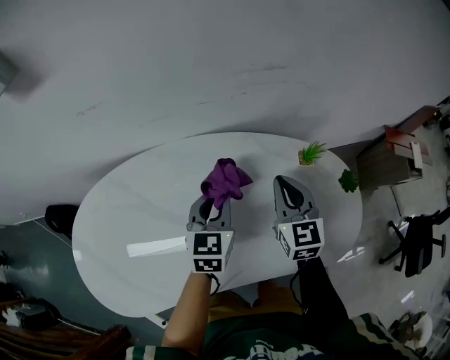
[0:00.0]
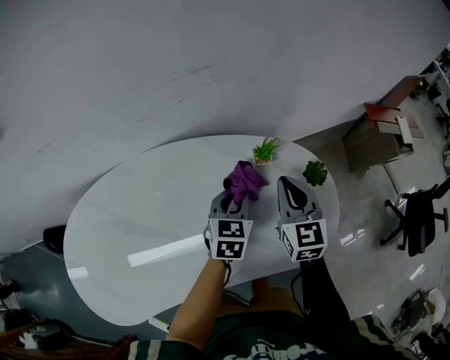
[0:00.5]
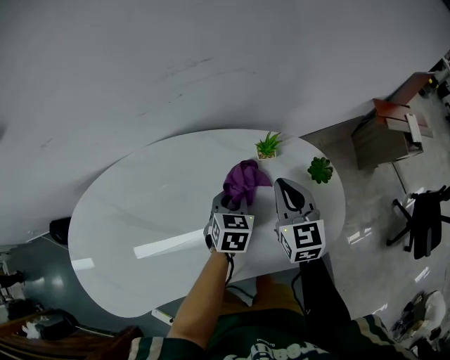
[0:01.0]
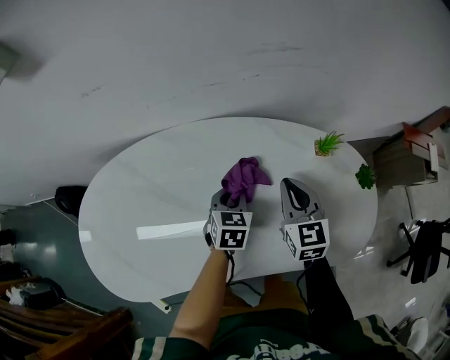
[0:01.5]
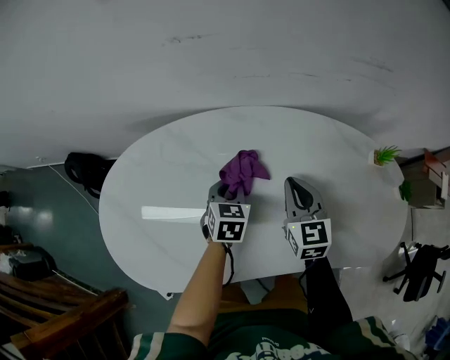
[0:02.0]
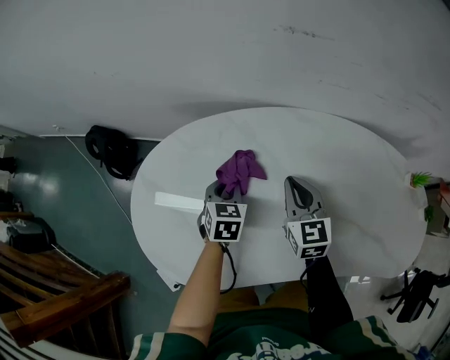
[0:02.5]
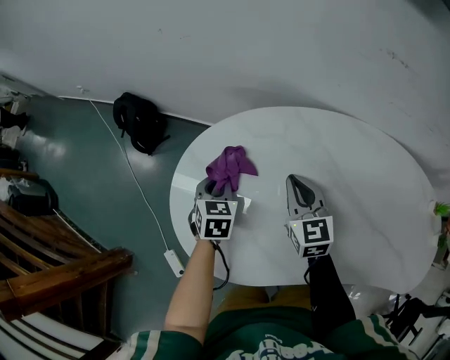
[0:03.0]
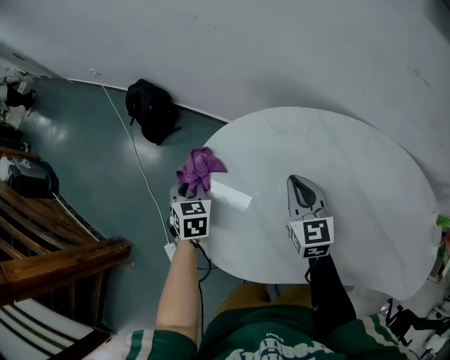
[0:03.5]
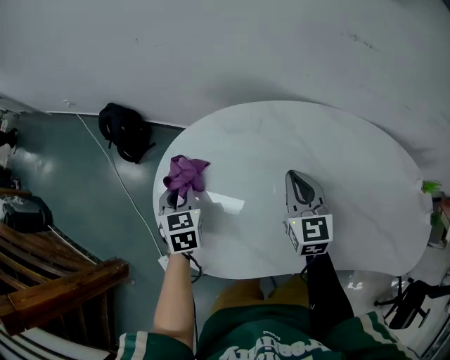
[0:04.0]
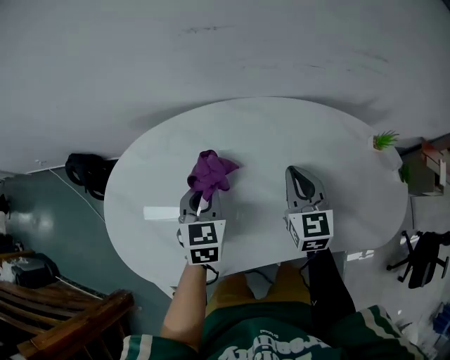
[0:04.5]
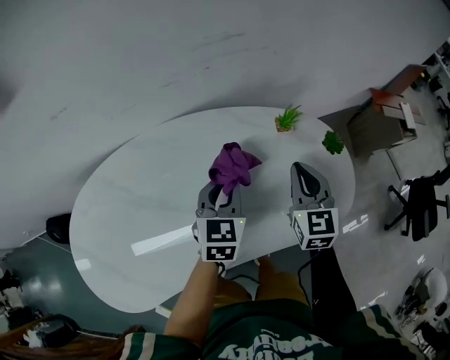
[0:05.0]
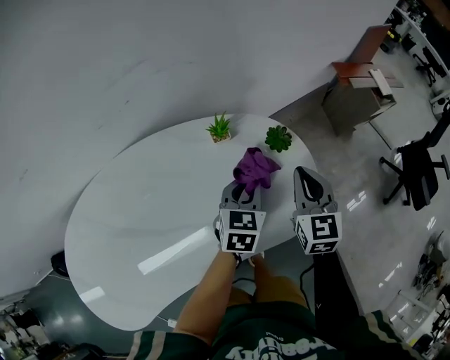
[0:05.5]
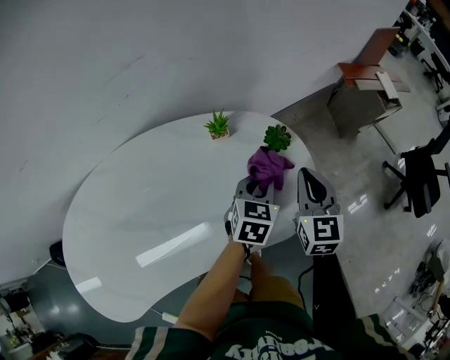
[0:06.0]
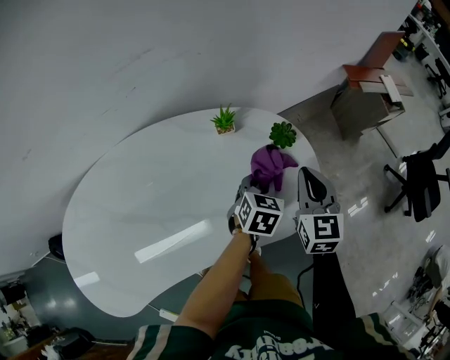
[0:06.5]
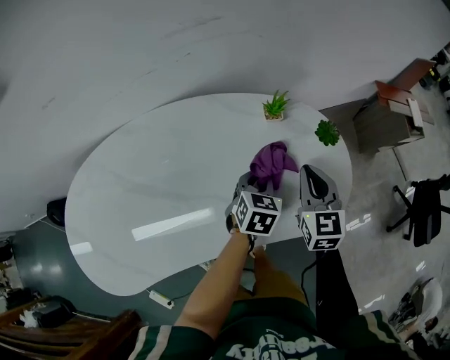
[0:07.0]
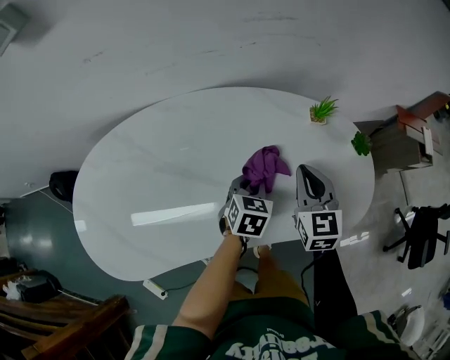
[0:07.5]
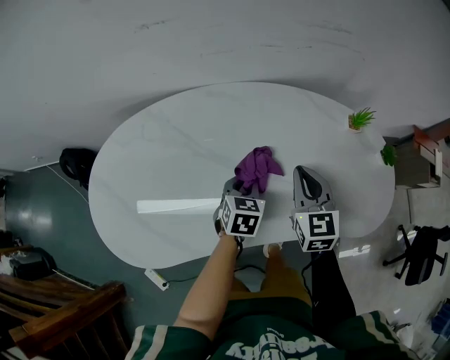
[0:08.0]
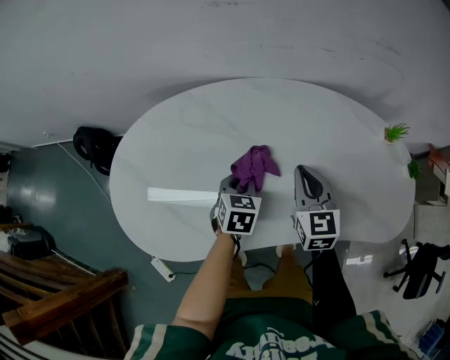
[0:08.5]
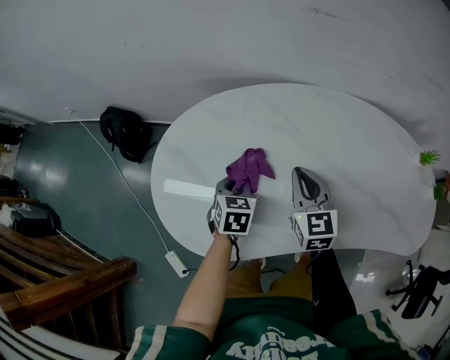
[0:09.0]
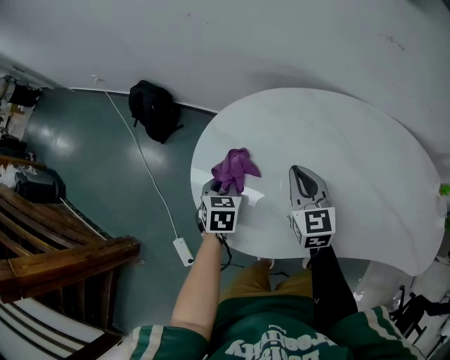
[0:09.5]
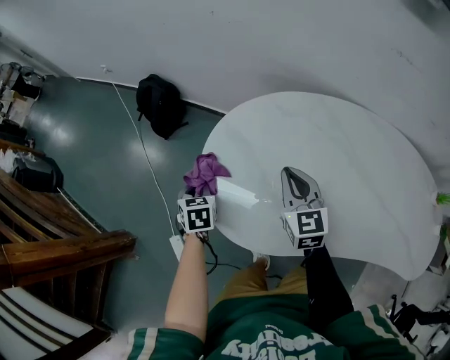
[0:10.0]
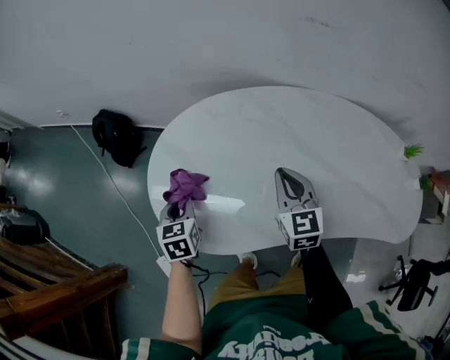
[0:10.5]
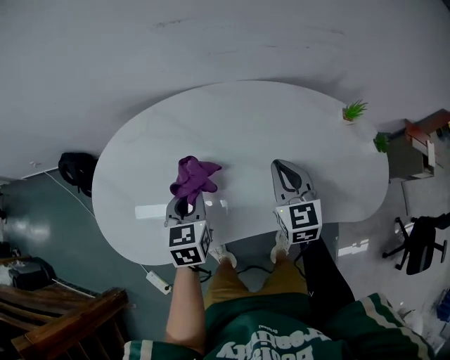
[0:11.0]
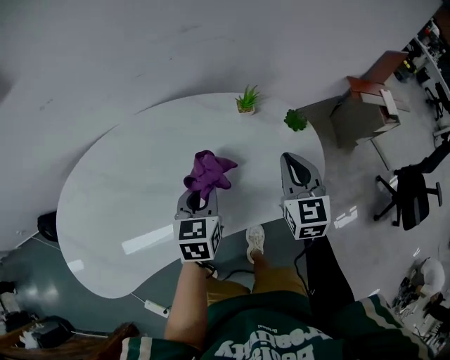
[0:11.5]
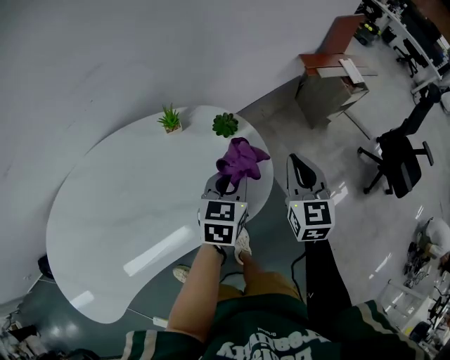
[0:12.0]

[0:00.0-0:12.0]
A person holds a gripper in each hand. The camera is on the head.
0:00.0 to 0:02.0: The left gripper is displaced to the left and downward by approximately 25 cm, and rotates some 20 degrees. The right gripper heads to the left, covering some 20 cm.
0:02.0 to 0:04.0: The left gripper ends up roughly 40 cm from where it was, and turns by roughly 30 degrees. The right gripper moves roughly 30 cm.
0:04.0 to 0:06.0: The pair of grippers is taken about 90 cm. The right gripper rotates approximately 50 degrees; the left gripper changes its angle by approximately 70 degrees.
0:06.0 to 0:08.0: The right gripper ends up some 35 cm from where it was, and changes its angle by some 30 degrees. Meanwhile the left gripper shifts by about 40 cm, and changes its angle by some 30 degrees.
0:08.0 to 0:10.0: Both grippers are carried roughly 60 cm. The right gripper rotates about 30 degrees. Meanwhile the left gripper changes its angle by approximately 50 degrees.
0:10.0 to 0:12.0: The two grippers travel together, some 1 m. The right gripper rotates some 60 degrees. The left gripper swivels roughly 80 degrees.

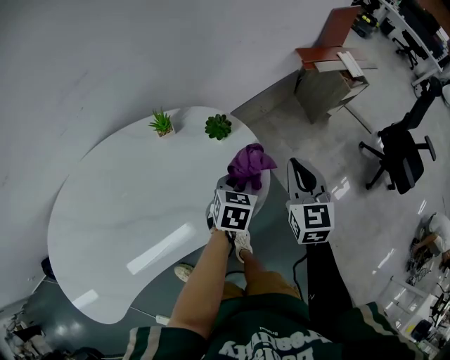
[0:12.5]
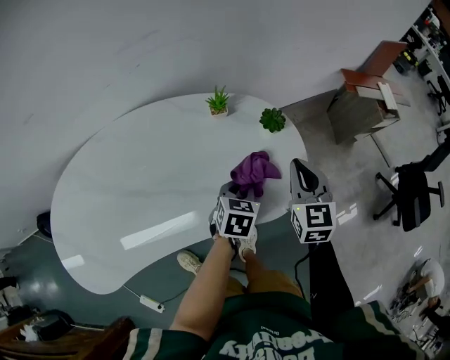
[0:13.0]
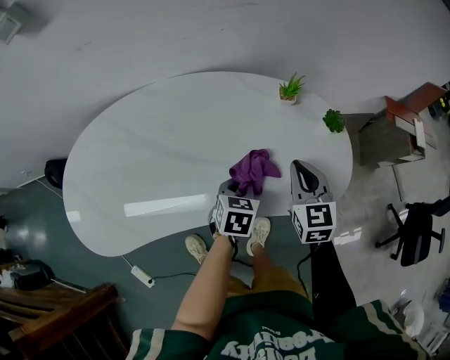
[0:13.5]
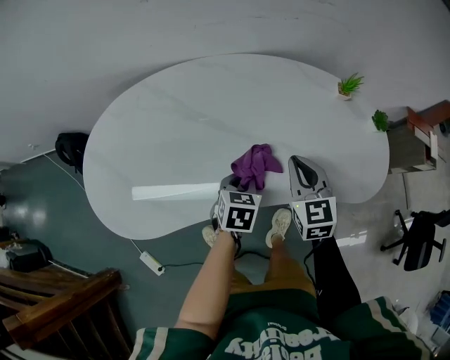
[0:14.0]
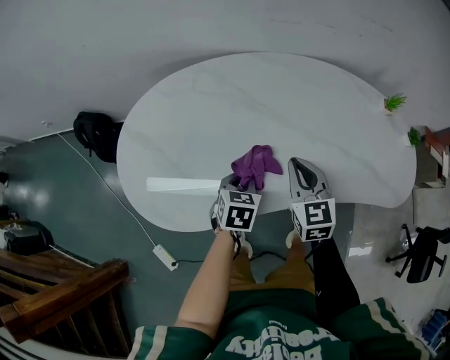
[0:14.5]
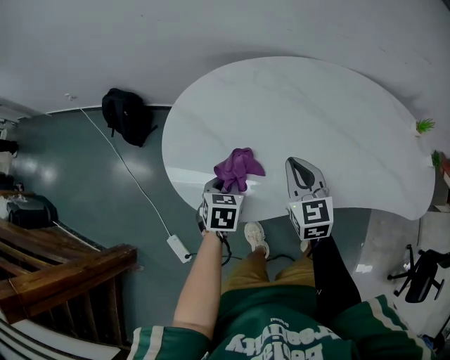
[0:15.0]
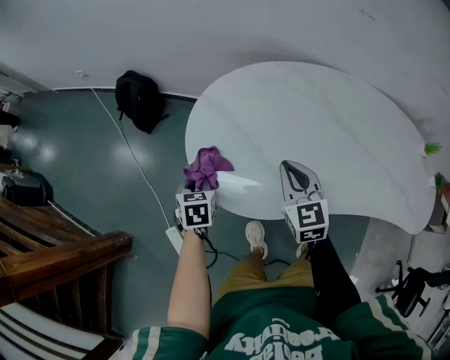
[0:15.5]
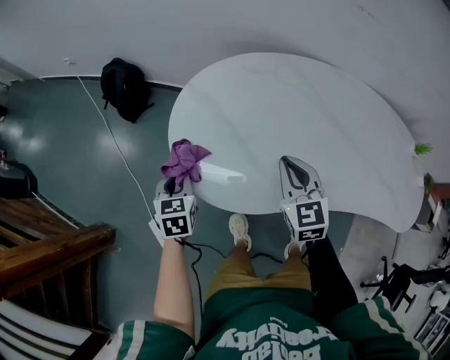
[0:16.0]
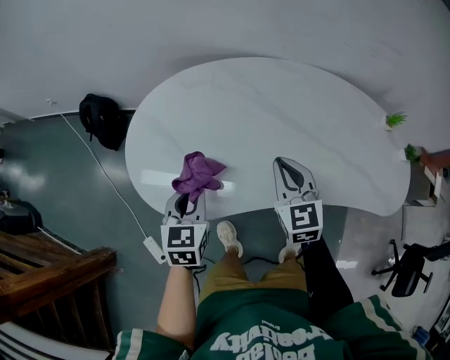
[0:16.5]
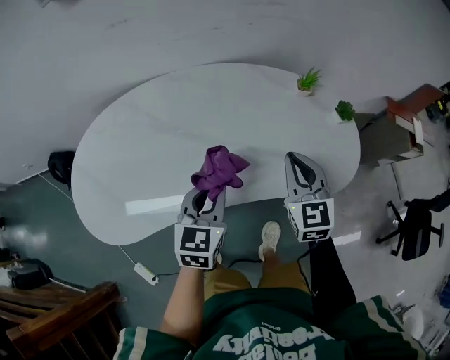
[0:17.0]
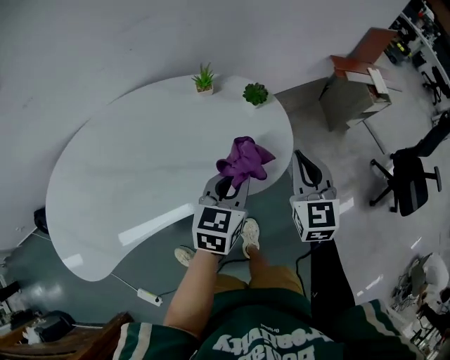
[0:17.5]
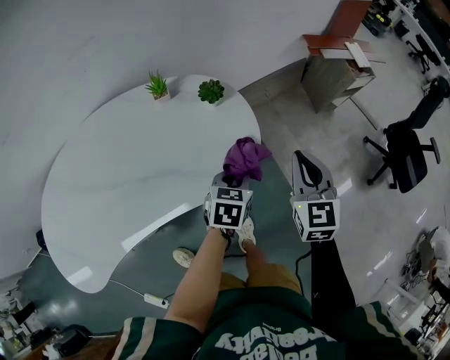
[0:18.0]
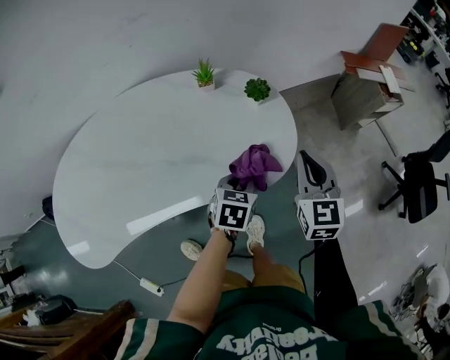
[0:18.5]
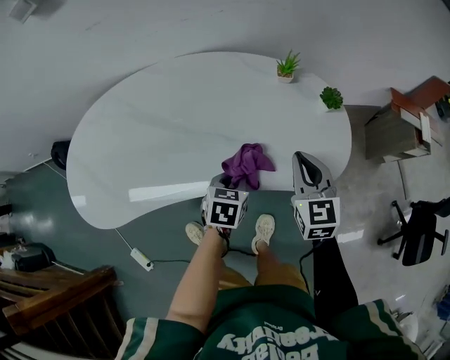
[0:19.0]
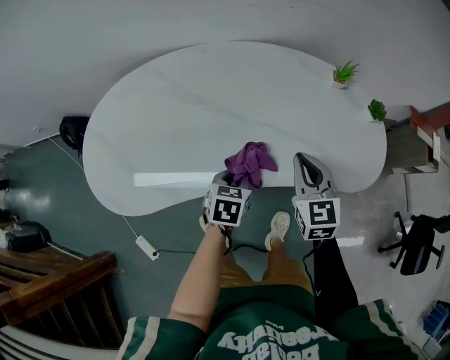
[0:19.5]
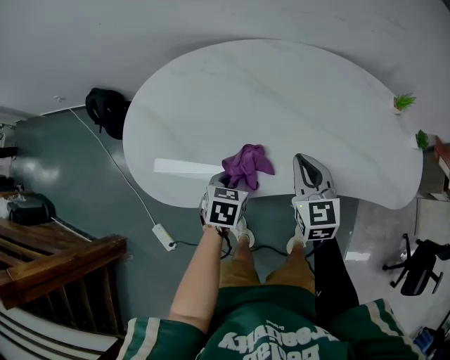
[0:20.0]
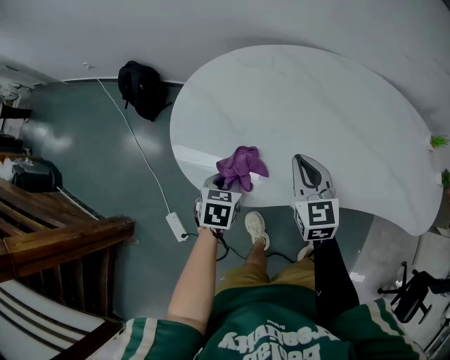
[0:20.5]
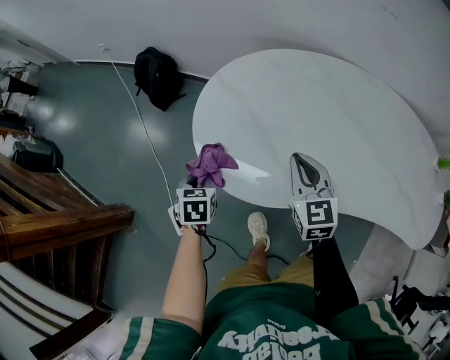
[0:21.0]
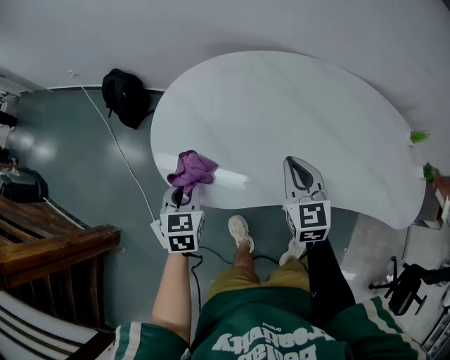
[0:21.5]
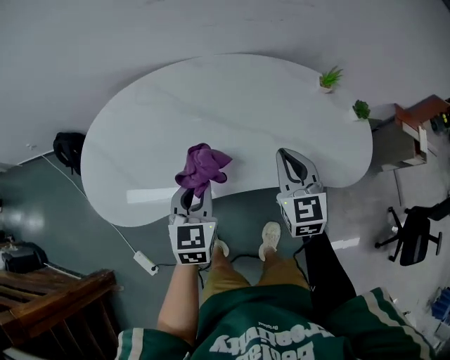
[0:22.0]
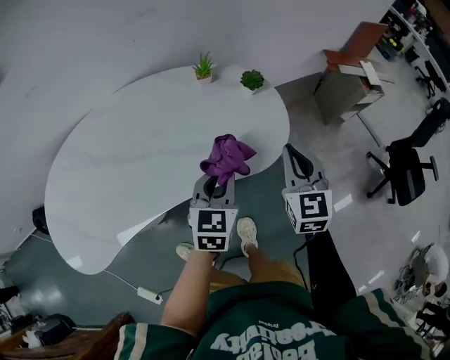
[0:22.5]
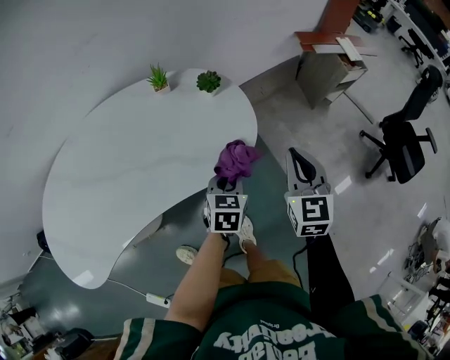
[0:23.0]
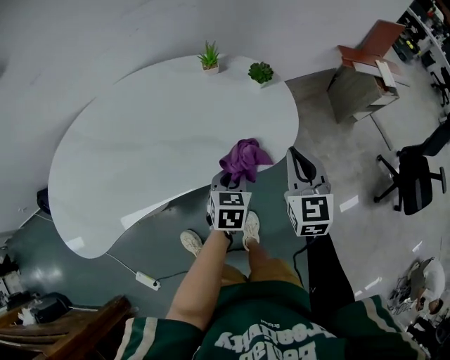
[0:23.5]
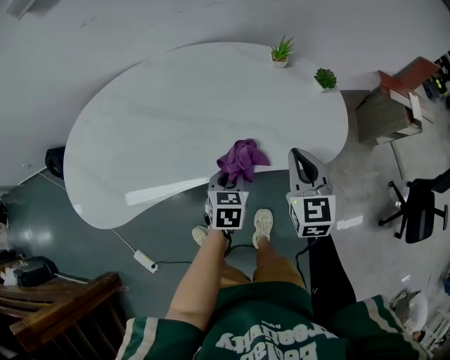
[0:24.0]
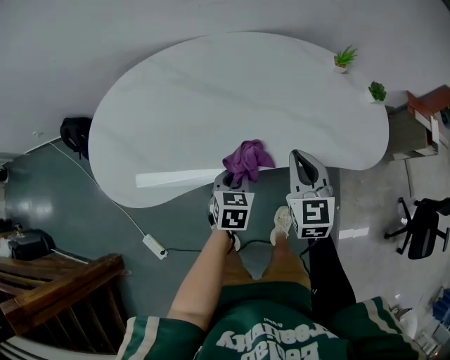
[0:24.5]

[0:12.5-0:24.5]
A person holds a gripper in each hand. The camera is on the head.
0:12.5 to 0:14.5: Both grippers are carried some 70 cm. The left gripper rotates about 40 degrees; the right gripper rotates roughly 40 degrees.
0:14.5 to 0:16.5: The left gripper turns by about 20 degrees.
0:16.5 to 0:18.5: The pair of grippers is taken roughly 70 cm. The left gripper changes its angle by some 50 degrees. Meanwhile the right gripper rotates about 40 degrees.
0:18.5 to 0:20.5: Both grippers are carried approximately 80 cm. The right gripper rotates roughly 40 degrees. The left gripper changes its angle by approximately 40 degrees.
0:20.5 to 0:22.5: The pair of grippers is taken roughly 70 cm. The right gripper swivels some 50 degrees; the left gripper swivels about 50 degrees.
0:22.5 to 0:24.5: The right gripper shifts by approximately 35 cm, and swivels about 20 degrees; the left gripper moves some 35 cm, and turns by roughly 30 degrees.

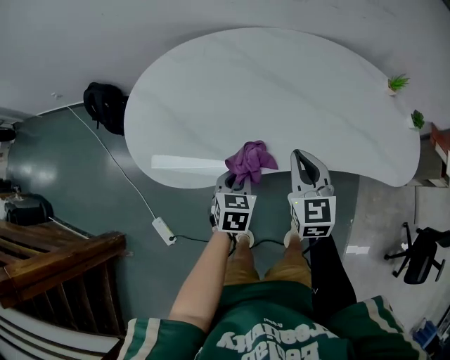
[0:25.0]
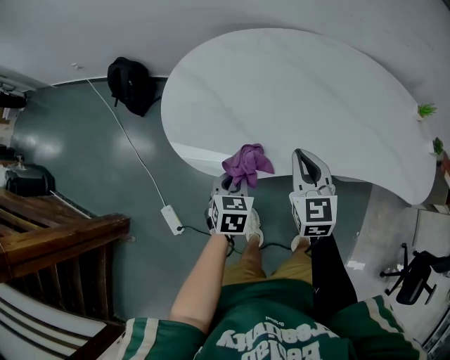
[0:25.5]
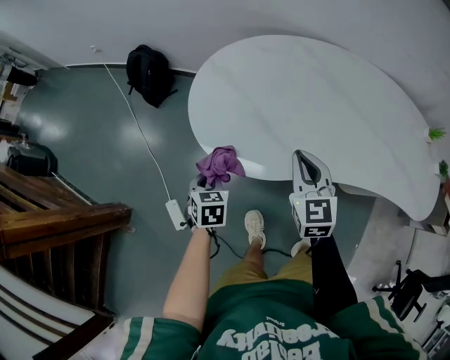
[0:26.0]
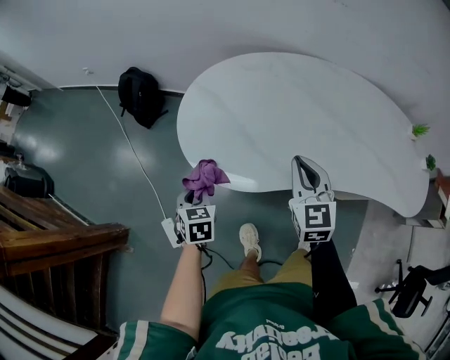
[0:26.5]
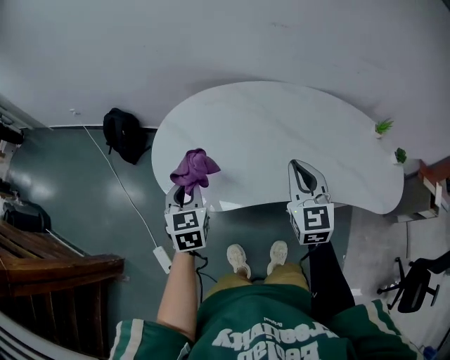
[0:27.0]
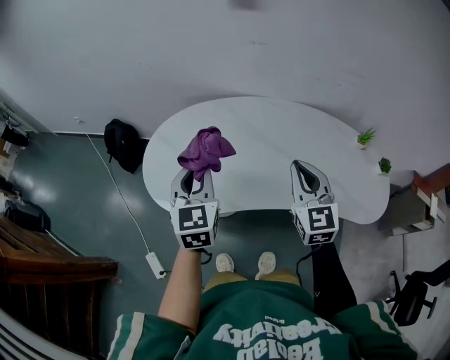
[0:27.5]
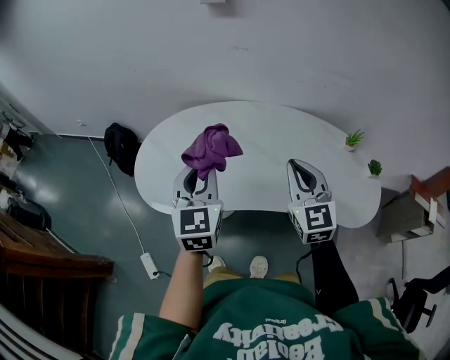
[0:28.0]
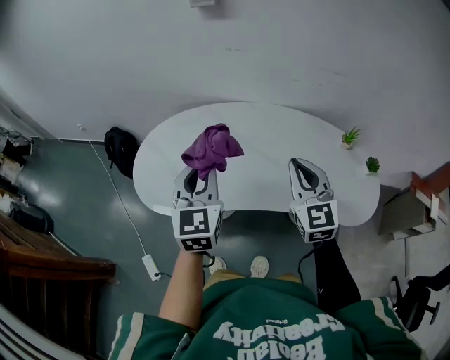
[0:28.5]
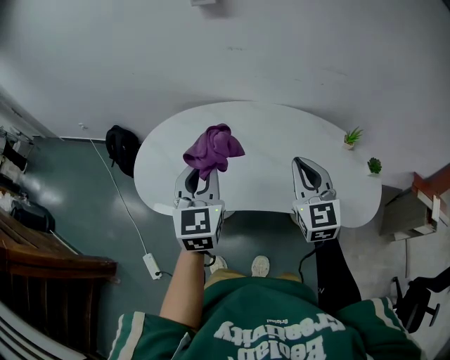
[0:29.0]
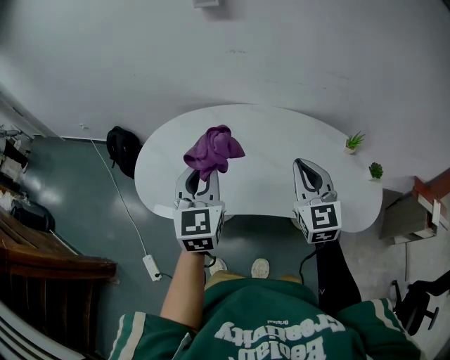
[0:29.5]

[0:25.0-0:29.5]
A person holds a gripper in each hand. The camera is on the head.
0:25.0 to 0:27.0: The left gripper travels upward and to the left by about 25 cm, and turns by approximately 30 degrees. The right gripper shifts about 15 cm upward, and travels to the left and back again, approximately 20 cm each way.
0:27.0 to 0:29.5: The left gripper goes approximately 30 cm to the right and upward, and swivels some 20 degrees. The right gripper travels to the right by about 20 cm.
